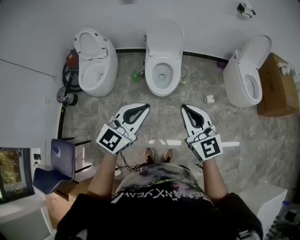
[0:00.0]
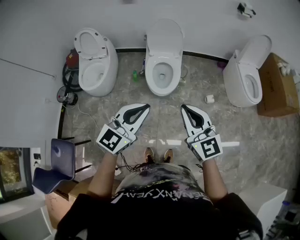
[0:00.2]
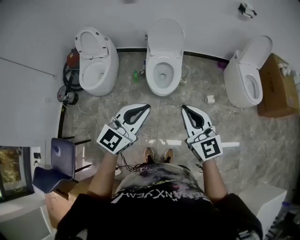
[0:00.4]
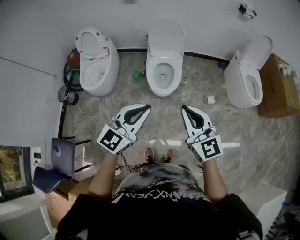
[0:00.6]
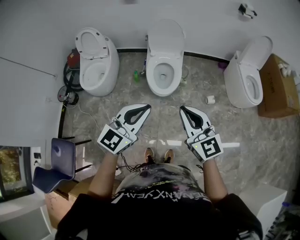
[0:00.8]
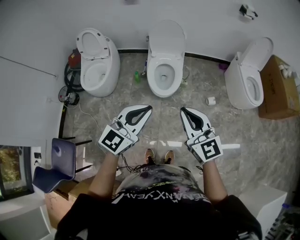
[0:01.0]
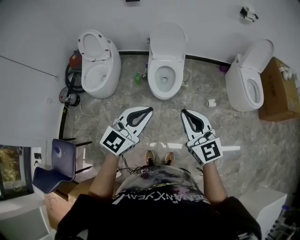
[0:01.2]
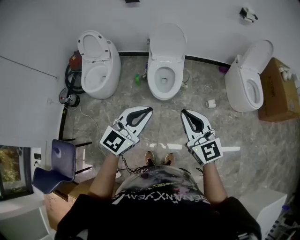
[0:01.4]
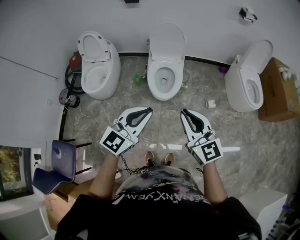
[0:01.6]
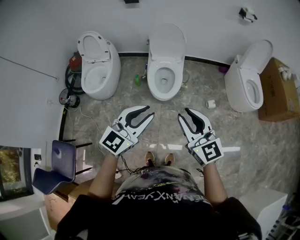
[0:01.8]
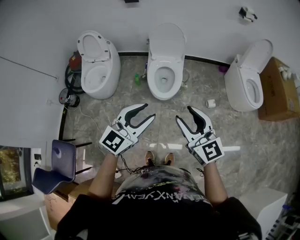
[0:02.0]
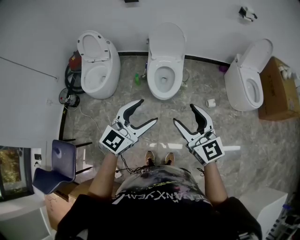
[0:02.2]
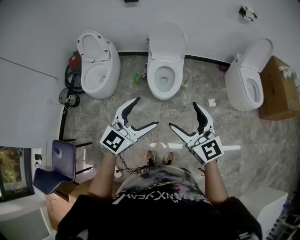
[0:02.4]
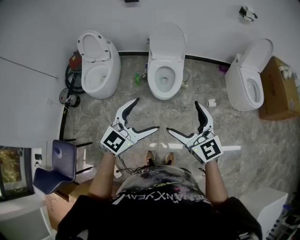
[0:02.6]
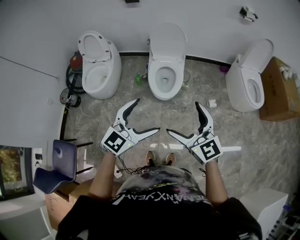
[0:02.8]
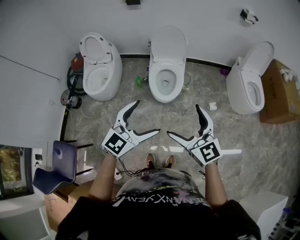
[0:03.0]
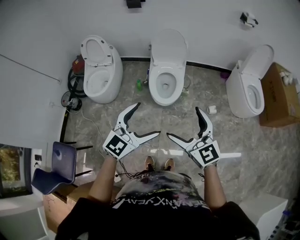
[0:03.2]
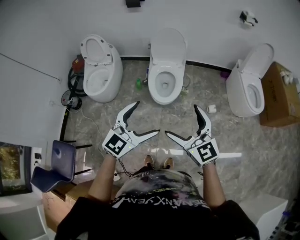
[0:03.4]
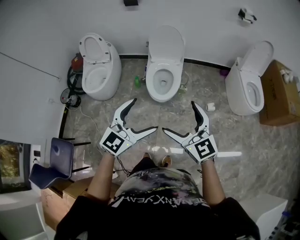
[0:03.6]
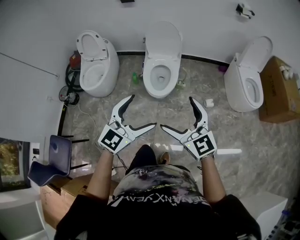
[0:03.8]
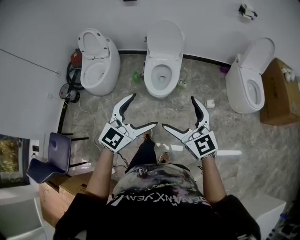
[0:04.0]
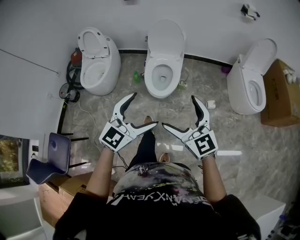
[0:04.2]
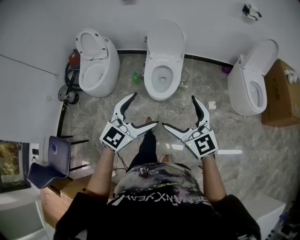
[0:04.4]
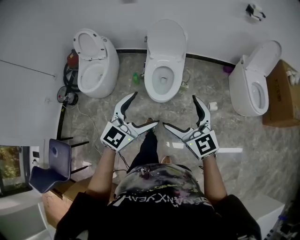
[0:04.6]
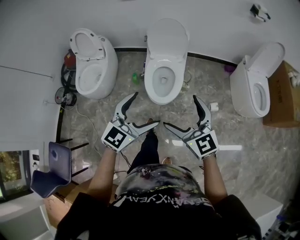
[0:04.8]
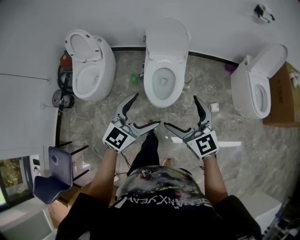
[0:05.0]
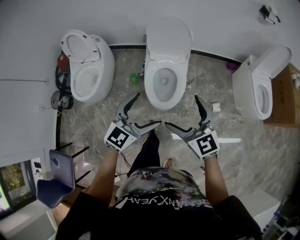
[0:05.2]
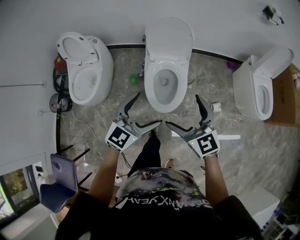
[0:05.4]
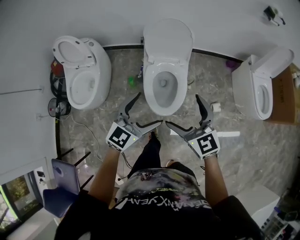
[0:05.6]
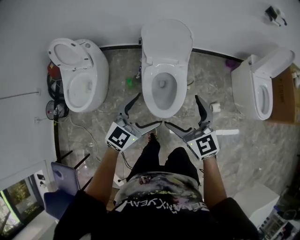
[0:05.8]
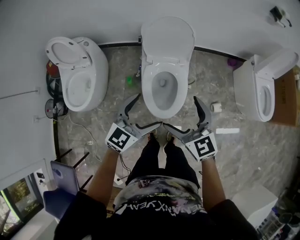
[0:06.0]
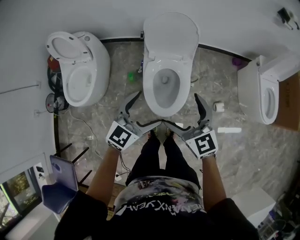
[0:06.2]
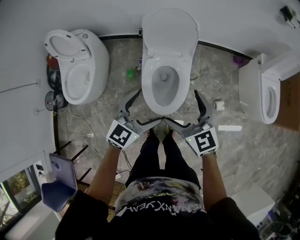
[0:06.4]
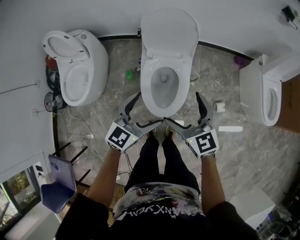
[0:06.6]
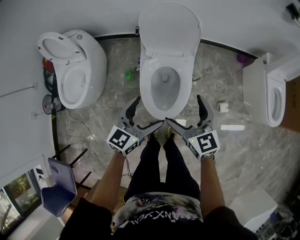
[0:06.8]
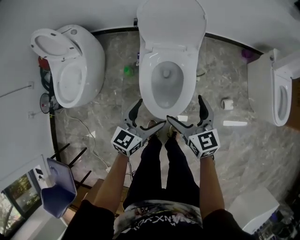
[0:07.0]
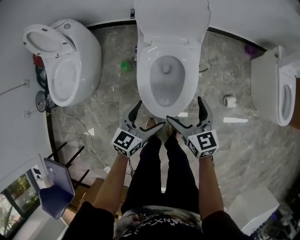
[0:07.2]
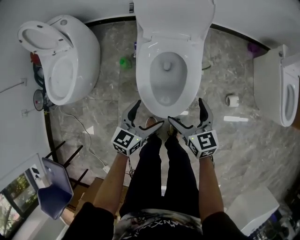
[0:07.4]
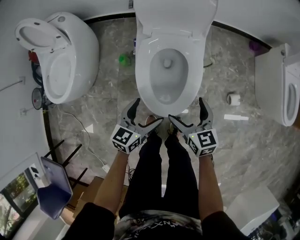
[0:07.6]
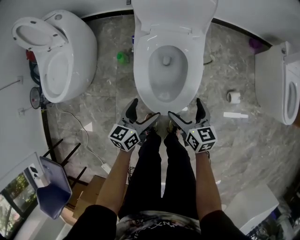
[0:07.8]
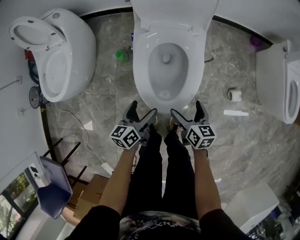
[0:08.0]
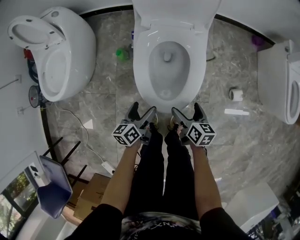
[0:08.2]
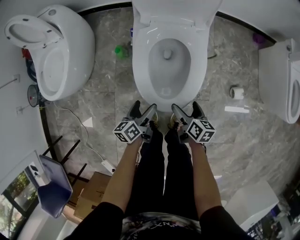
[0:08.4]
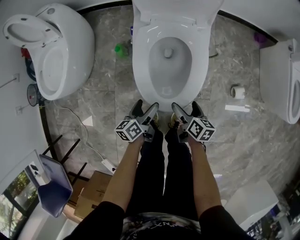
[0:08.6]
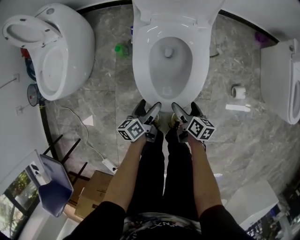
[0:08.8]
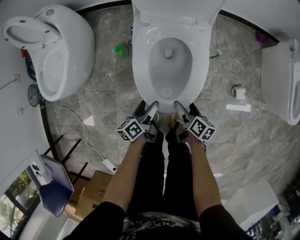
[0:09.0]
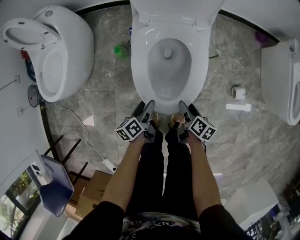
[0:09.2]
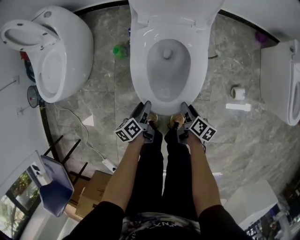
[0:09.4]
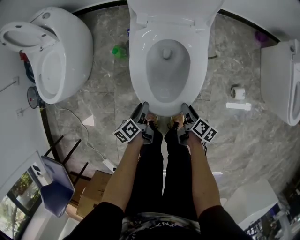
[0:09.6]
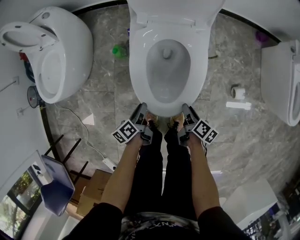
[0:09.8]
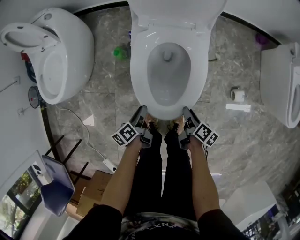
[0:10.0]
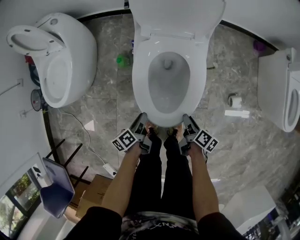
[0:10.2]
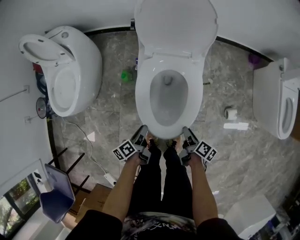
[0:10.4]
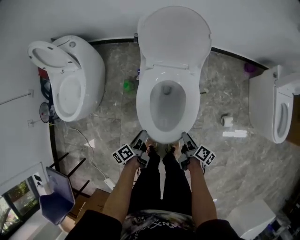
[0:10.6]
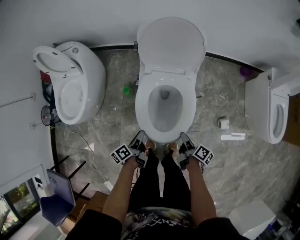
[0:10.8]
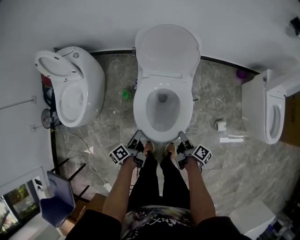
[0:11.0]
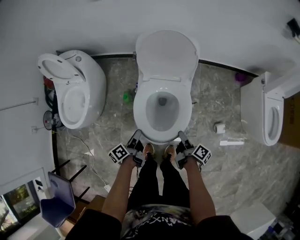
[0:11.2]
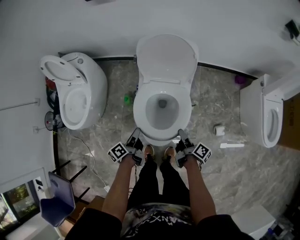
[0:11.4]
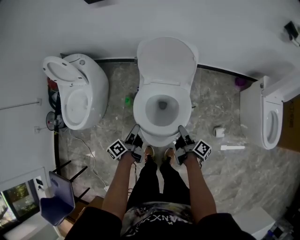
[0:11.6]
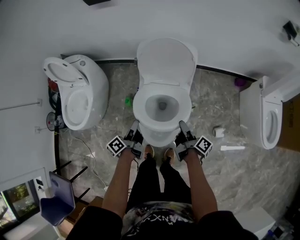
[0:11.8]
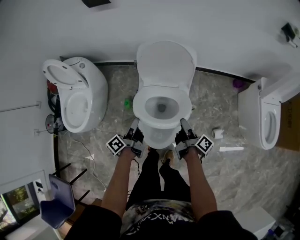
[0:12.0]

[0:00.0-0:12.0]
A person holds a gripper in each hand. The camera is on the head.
0:00.0 to 0:01.6: The two grippers keep their place.
0:01.6 to 0:03.0: The right gripper opens; the left gripper opens.
0:03.0 to 0:04.4: The right gripper goes about 10 cm to the right and forward, while the left gripper goes approximately 5 cm to the right.
0:04.4 to 0:06.0: The left gripper shifts about 35 cm forward and downward; the right gripper shifts approximately 35 cm forward.
0:06.0 to 0:07.6: Both grippers move downward, roughly 35 cm. The right gripper swivels roughly 30 degrees. The left gripper rotates about 30 degrees.
0:07.6 to 0:09.0: The grippers both shift downward by approximately 15 cm. The right gripper twists approximately 50 degrees clockwise, seen from behind. Meanwhile the left gripper rotates around the line of its fingers by some 50 degrees, counterclockwise from behind.
0:09.0 to 0:10.4: Both grippers move upward, about 5 cm. The right gripper closes, while the left gripper closes.
0:10.4 to 0:12.0: Both grippers travel together upward and forward, some 30 cm. The left gripper rotates approximately 30 degrees, while the right gripper turns by about 30 degrees.

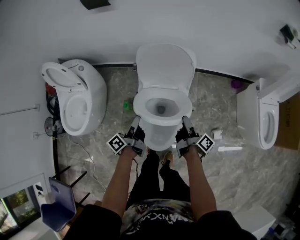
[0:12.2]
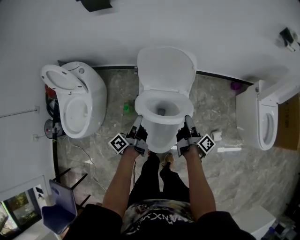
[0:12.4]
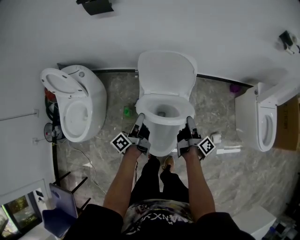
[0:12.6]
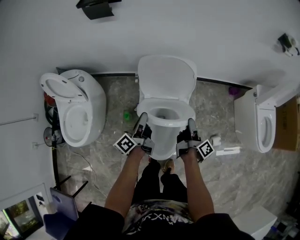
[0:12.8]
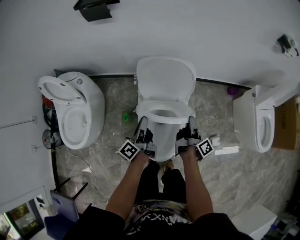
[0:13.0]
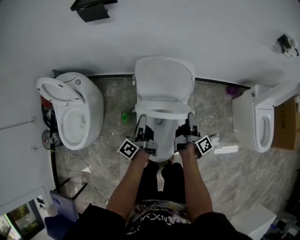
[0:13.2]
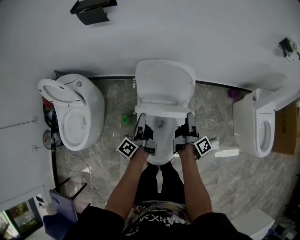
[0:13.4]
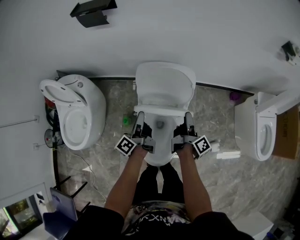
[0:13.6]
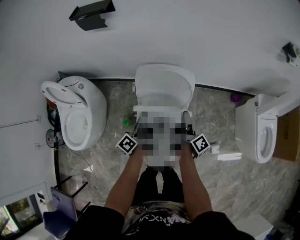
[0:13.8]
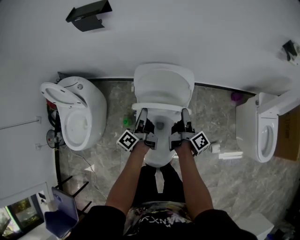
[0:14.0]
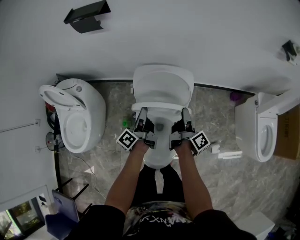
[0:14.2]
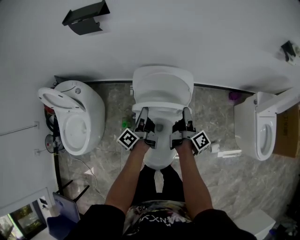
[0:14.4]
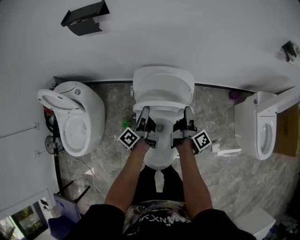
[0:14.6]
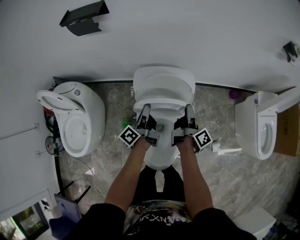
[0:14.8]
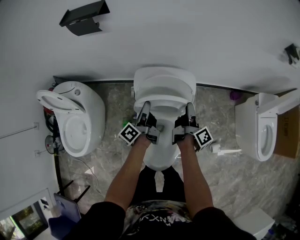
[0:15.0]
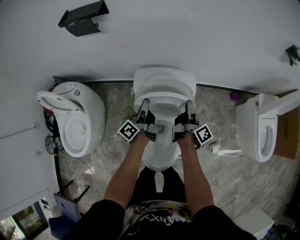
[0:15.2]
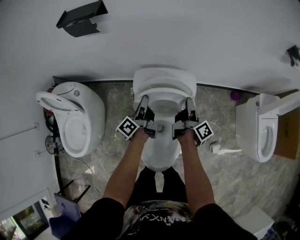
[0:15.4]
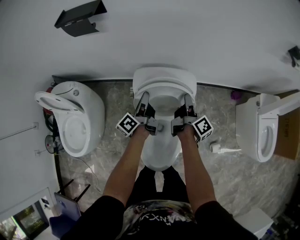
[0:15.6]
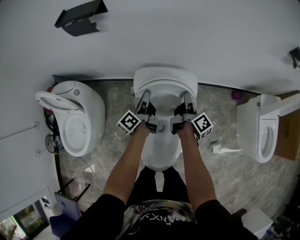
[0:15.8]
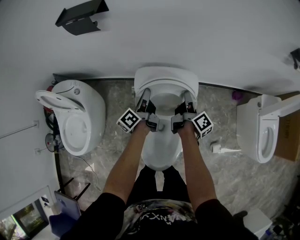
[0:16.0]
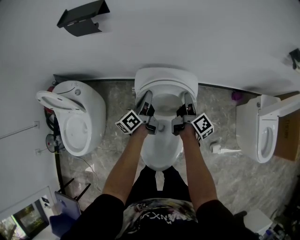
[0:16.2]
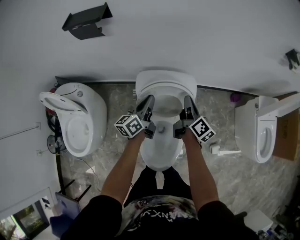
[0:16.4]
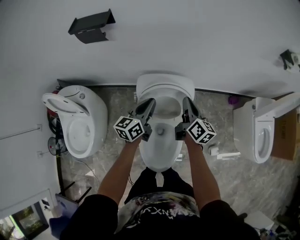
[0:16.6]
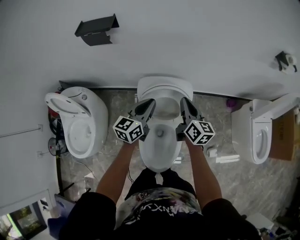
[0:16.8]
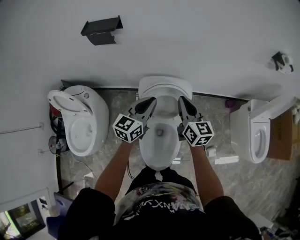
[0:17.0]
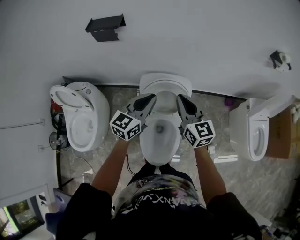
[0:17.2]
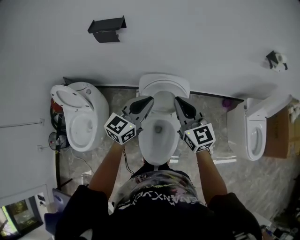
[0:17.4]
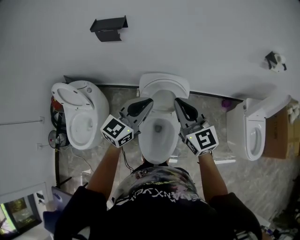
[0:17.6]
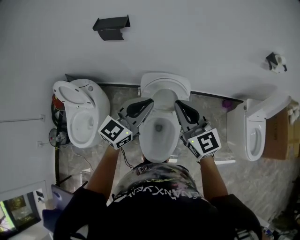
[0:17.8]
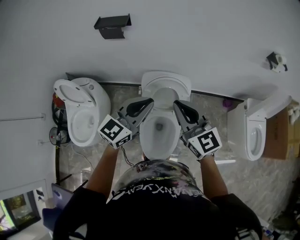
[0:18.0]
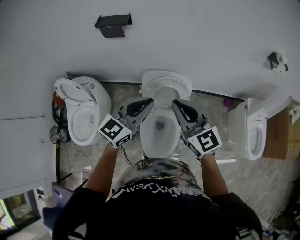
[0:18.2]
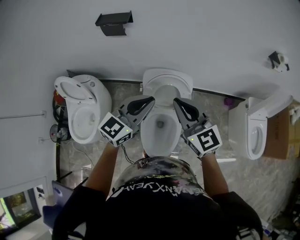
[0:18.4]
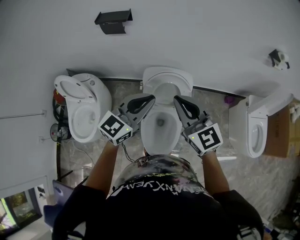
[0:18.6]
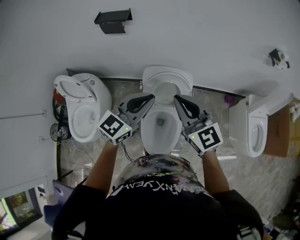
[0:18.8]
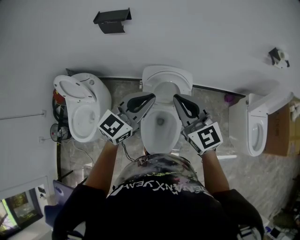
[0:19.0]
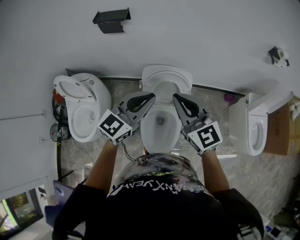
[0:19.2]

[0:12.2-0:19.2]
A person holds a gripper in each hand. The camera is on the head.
0:12.2 to 0:13.6: Both grippers move forward, roughly 15 cm.
0:13.6 to 0:15.0: The grippers both shift forward by roughly 10 cm.
0:15.0 to 0:16.4: The right gripper is displaced forward by approximately 5 cm, and swivels approximately 30 degrees. The left gripper moves some 5 cm, and turns by roughly 30 degrees.
0:16.4 to 0:17.8: Both grippers move upward and backward, some 35 cm. The left gripper twists about 40 degrees clockwise, seen from behind. Meanwhile the right gripper rolls counterclockwise, seen from behind, by about 60 degrees.
0:17.8 to 0:19.2: The grippers stay close to where they were, moving slightly.

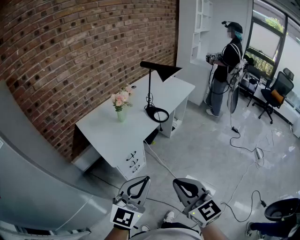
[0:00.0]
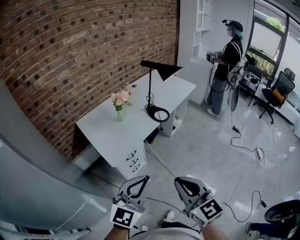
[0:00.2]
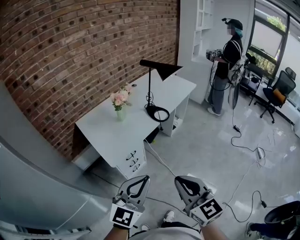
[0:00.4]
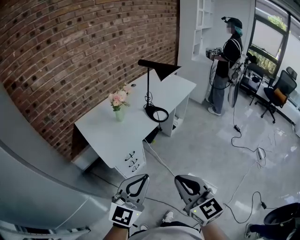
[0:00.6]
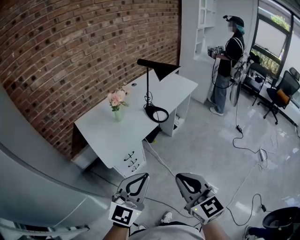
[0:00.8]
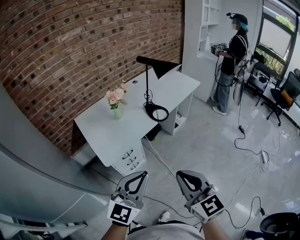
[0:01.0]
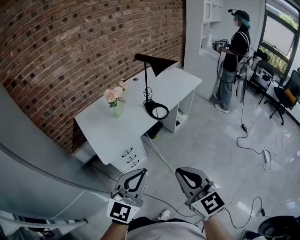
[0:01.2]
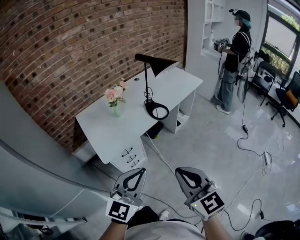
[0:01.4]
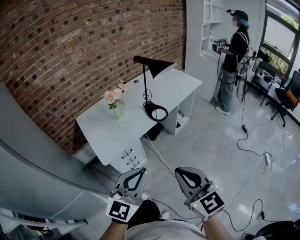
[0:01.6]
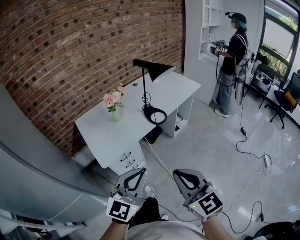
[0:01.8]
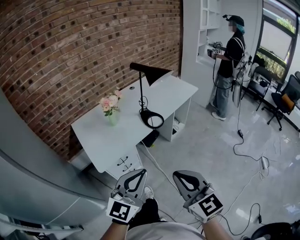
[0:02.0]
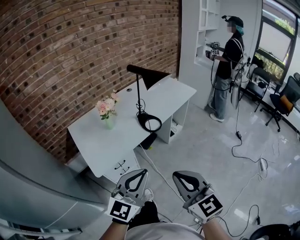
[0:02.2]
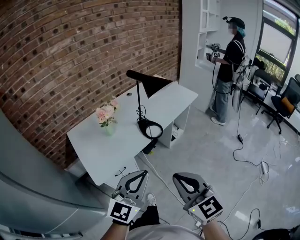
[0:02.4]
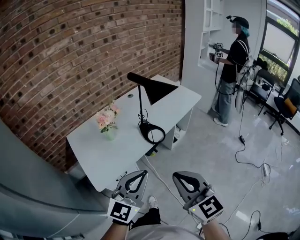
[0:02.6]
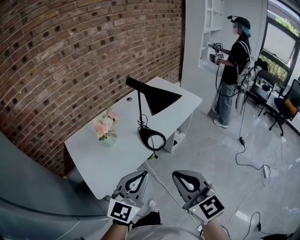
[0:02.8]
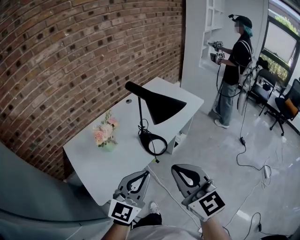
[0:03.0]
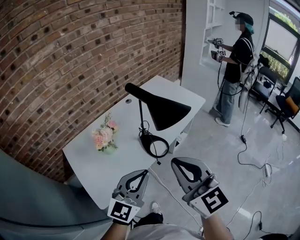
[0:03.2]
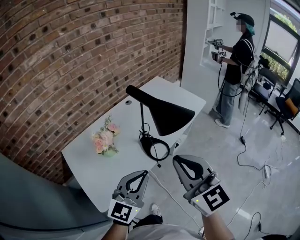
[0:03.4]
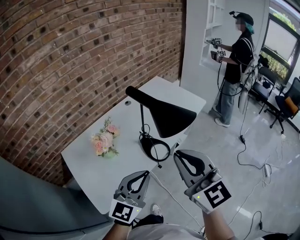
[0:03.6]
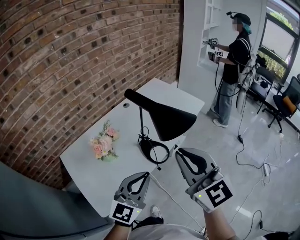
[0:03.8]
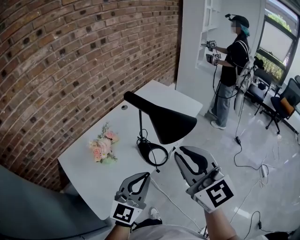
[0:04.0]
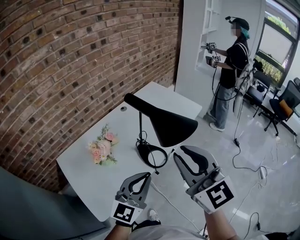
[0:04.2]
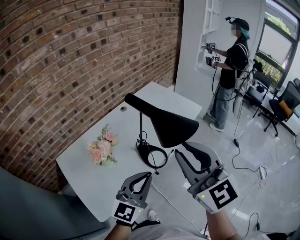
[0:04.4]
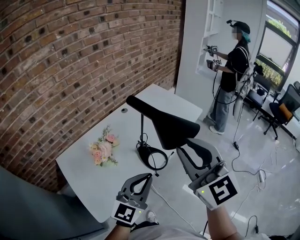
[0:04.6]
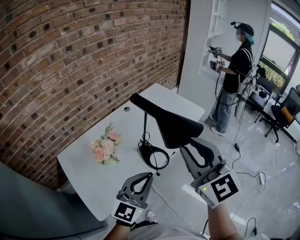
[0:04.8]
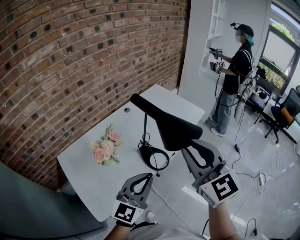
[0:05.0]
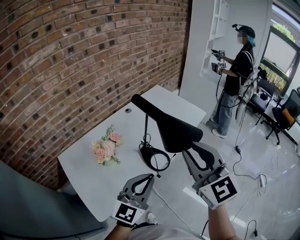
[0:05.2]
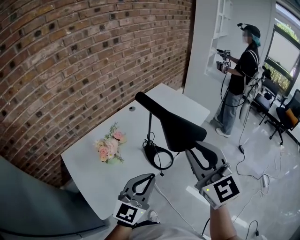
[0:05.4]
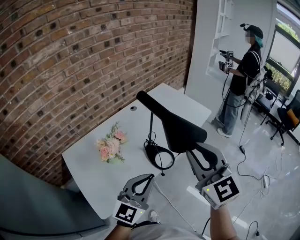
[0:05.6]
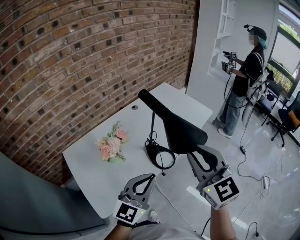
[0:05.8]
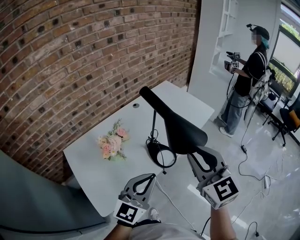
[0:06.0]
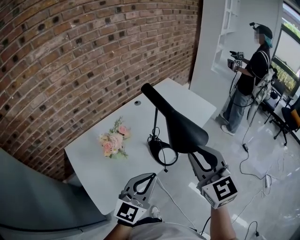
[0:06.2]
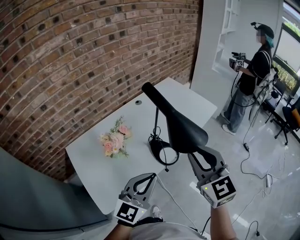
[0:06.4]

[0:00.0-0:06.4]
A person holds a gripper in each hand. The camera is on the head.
0:00.0 to 0:01.6: Both grippers move to the right and forward, approximately 15 cm.
0:01.6 to 0:03.2: The two grippers go approximately 30 cm forward.
0:03.2 to 0:04.8: The left gripper travels forward by about 5 cm, while the right gripper goes about 10 cm forward and upward.
0:04.8 to 0:06.4: The right gripper is displaced downward by about 10 cm.
